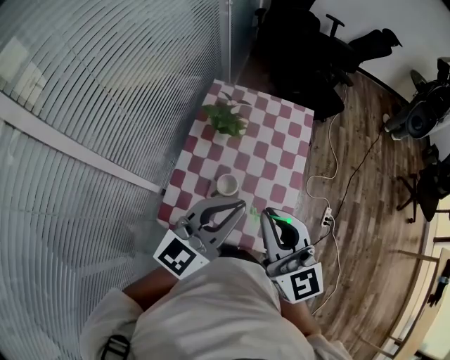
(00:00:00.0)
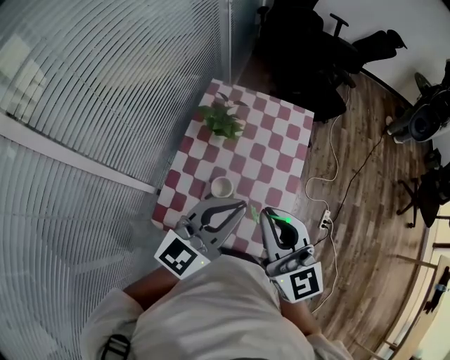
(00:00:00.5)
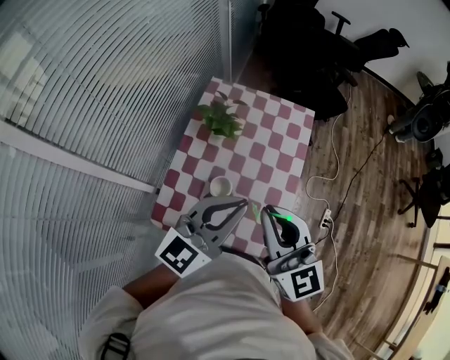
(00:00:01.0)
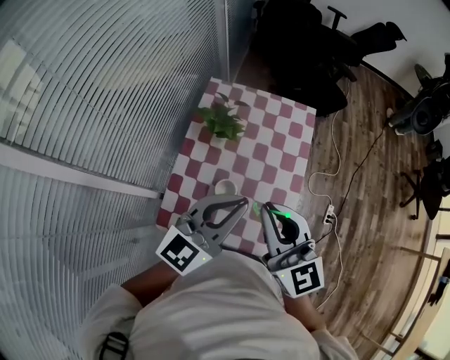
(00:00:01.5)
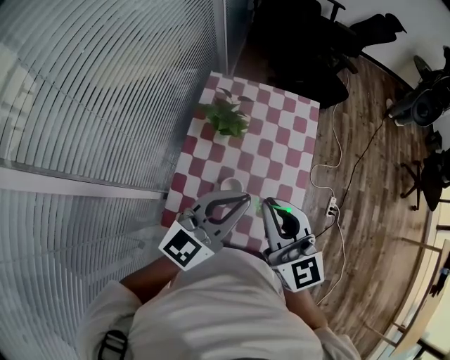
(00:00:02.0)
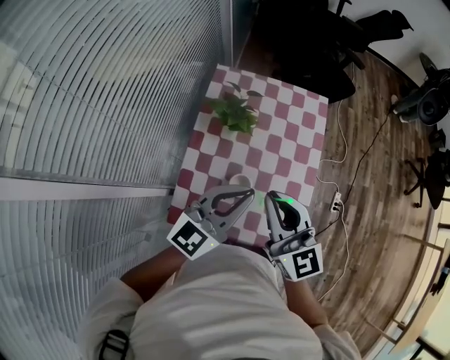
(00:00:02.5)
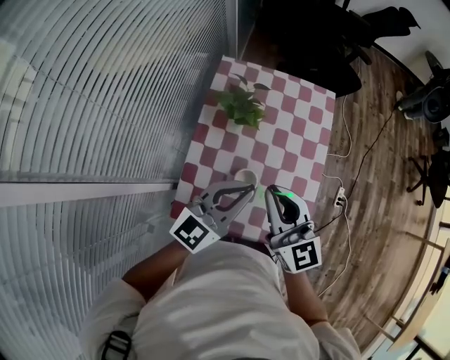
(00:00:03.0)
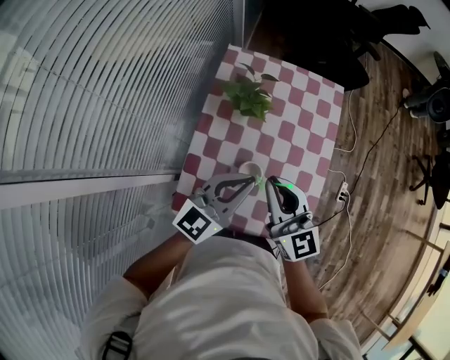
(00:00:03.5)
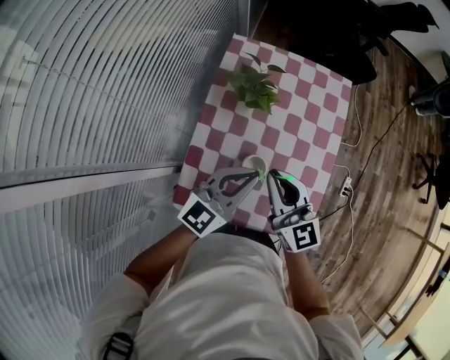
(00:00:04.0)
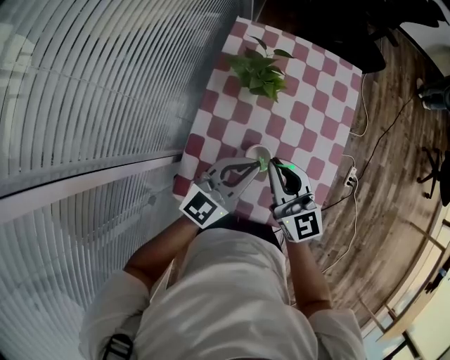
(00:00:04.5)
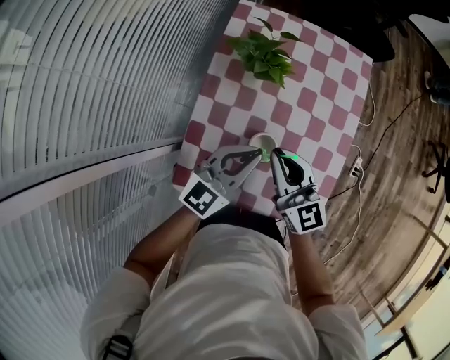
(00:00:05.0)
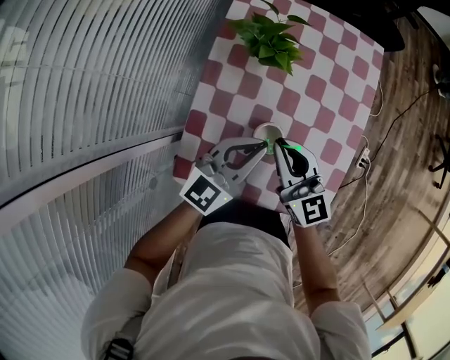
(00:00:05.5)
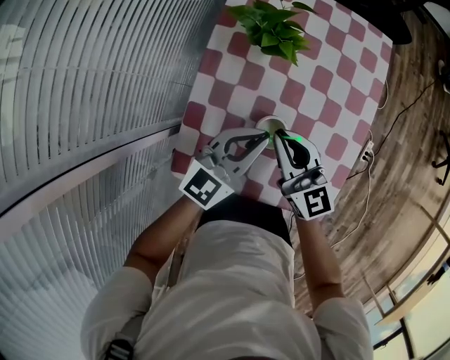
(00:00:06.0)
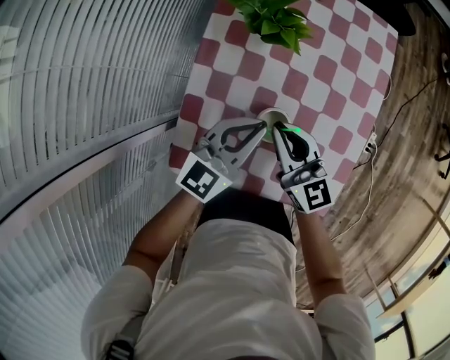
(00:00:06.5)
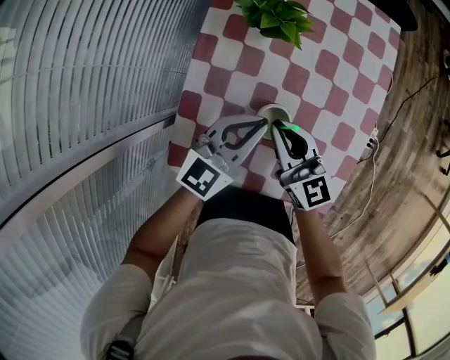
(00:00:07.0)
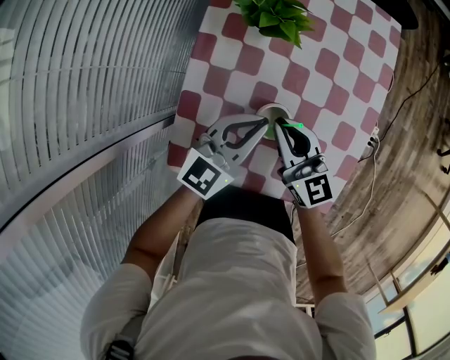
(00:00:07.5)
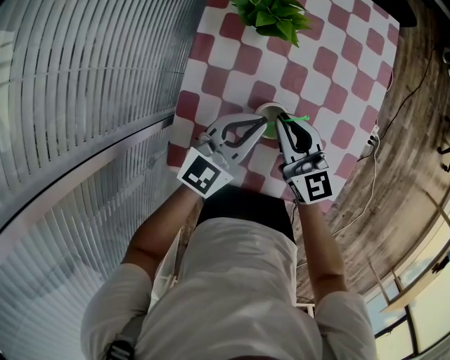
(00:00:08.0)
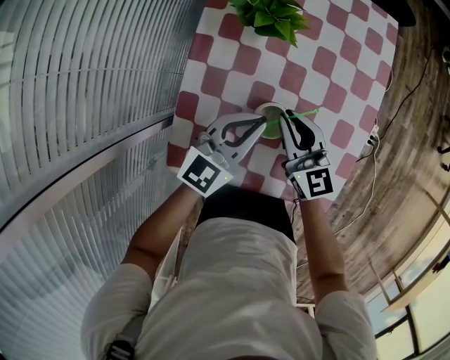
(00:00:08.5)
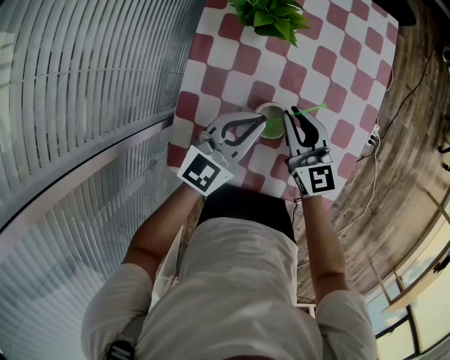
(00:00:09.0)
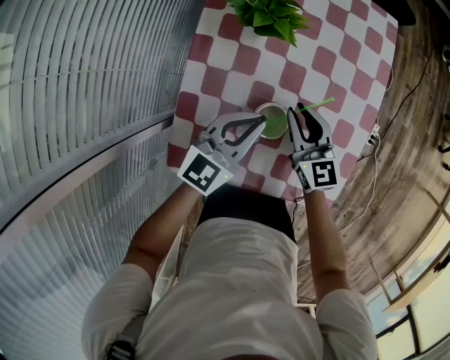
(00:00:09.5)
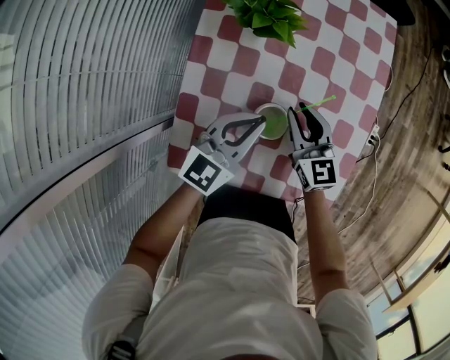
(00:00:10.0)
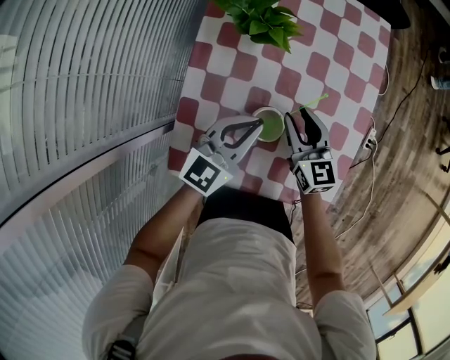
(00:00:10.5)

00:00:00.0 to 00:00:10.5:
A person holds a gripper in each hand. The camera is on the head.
00:00:00.0 to 00:00:02.0: The two grippers go approximately 5 cm forward.
00:00:02.0 to 00:00:04.0: The left gripper travels downward and to the left by about 15 cm. Meanwhile the right gripper heads downward, covering approximately 15 cm.
00:00:04.0 to 00:00:06.5: Both grippers move downward, approximately 15 cm.
00:00:06.5 to 00:00:08.5: The right gripper moves some 5 cm.
00:00:08.5 to 00:00:10.5: The right gripper opens.

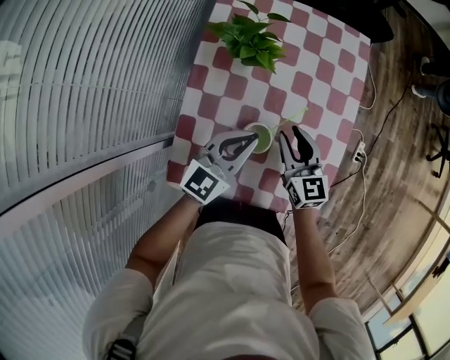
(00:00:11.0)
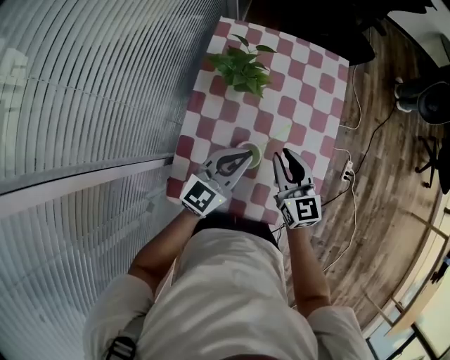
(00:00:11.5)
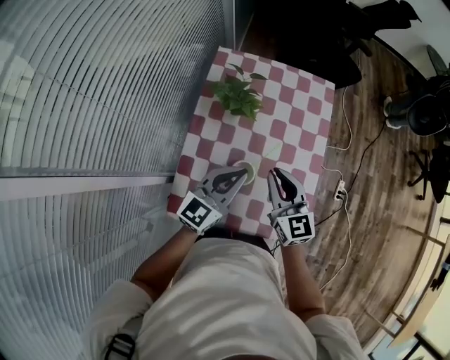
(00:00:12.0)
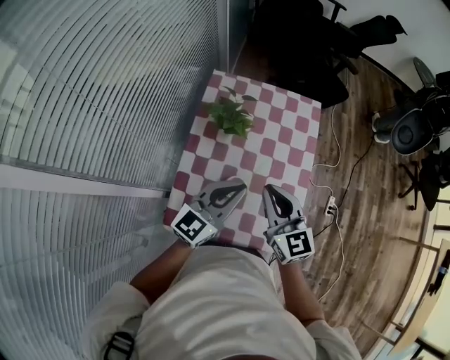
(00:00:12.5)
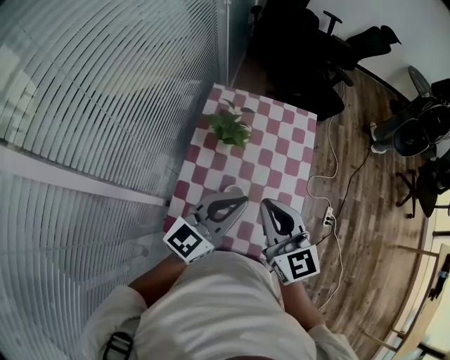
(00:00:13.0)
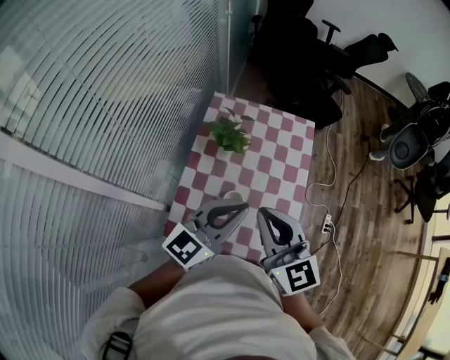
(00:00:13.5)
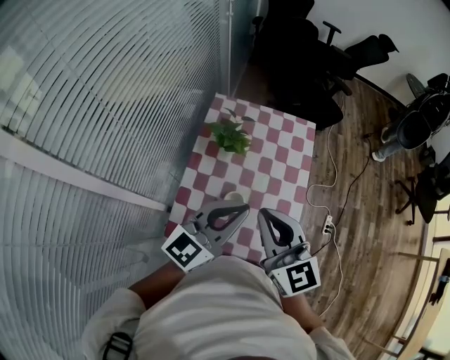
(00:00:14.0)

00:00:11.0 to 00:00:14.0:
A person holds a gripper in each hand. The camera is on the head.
00:00:11.0 to 00:00:12.5: The grippers both shift upward by roughly 20 cm. The right gripper closes up.
00:00:12.5 to 00:00:14.0: The left gripper shifts approximately 10 cm upward; the right gripper travels upward and backward by some 15 cm.

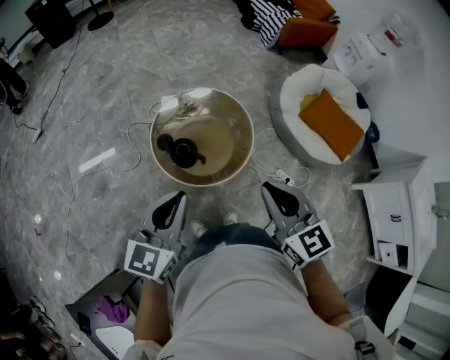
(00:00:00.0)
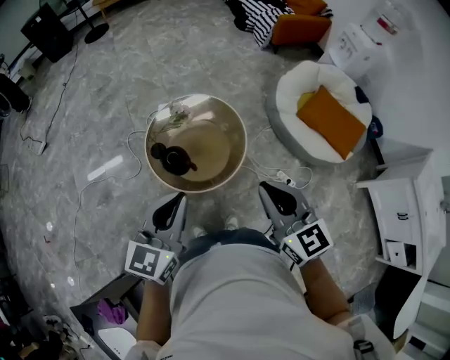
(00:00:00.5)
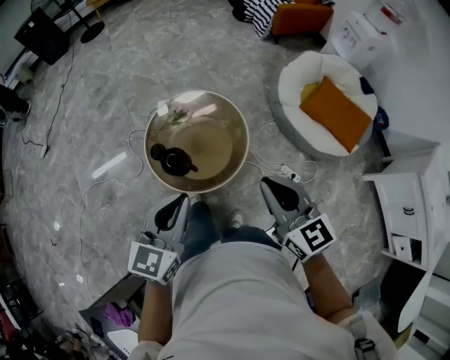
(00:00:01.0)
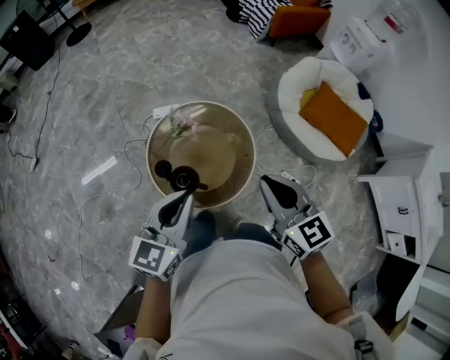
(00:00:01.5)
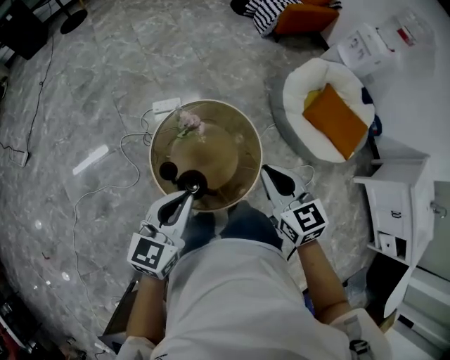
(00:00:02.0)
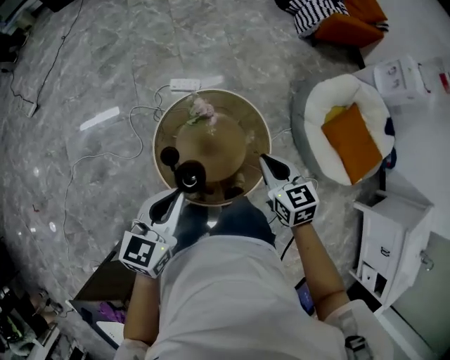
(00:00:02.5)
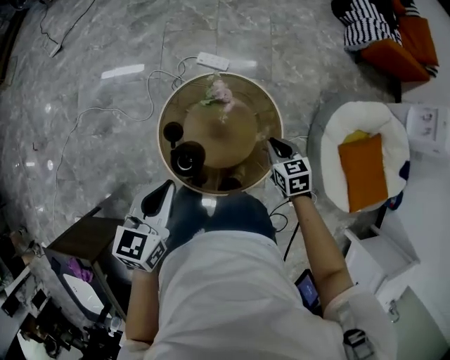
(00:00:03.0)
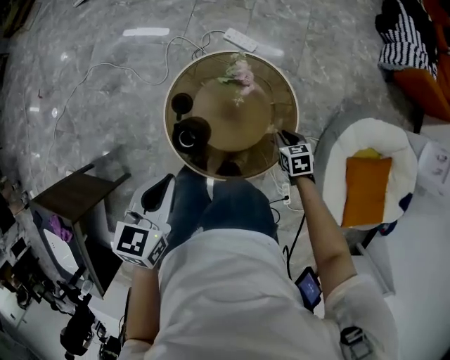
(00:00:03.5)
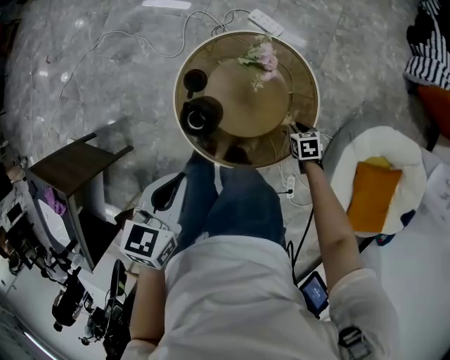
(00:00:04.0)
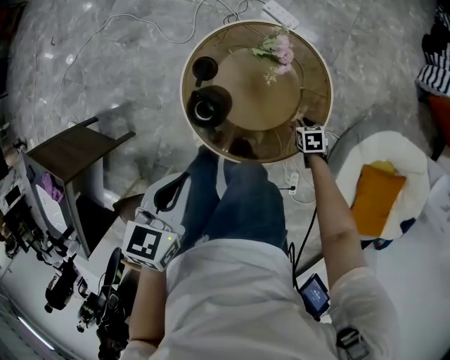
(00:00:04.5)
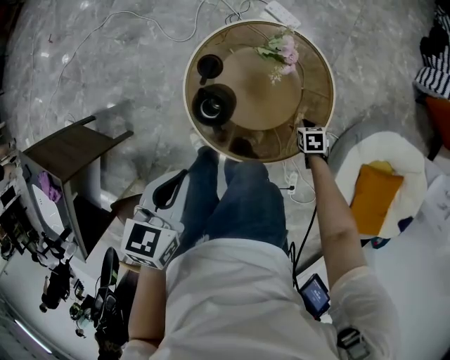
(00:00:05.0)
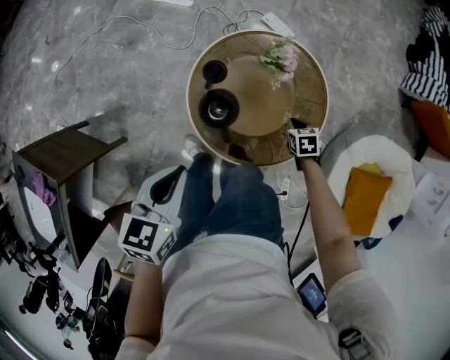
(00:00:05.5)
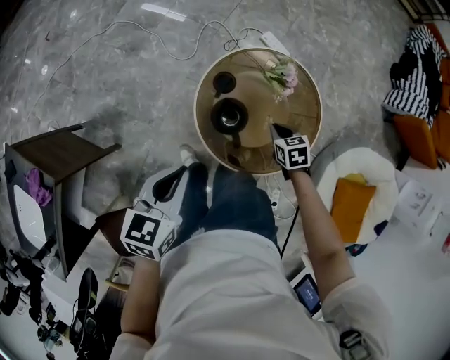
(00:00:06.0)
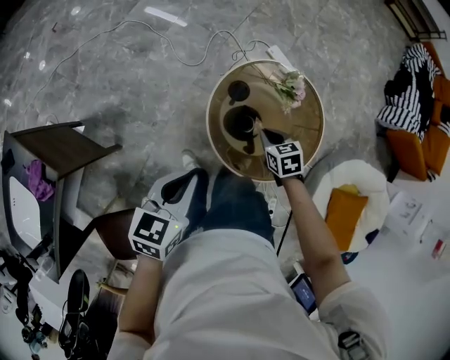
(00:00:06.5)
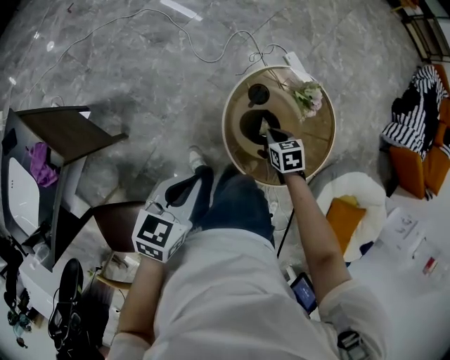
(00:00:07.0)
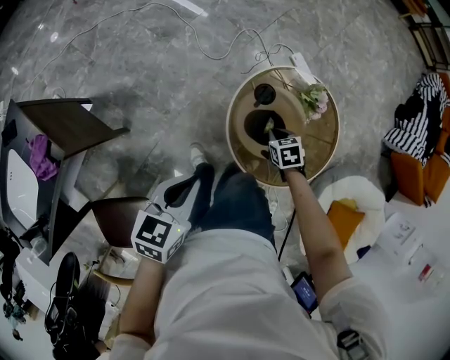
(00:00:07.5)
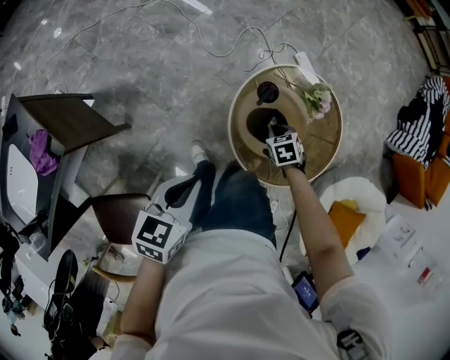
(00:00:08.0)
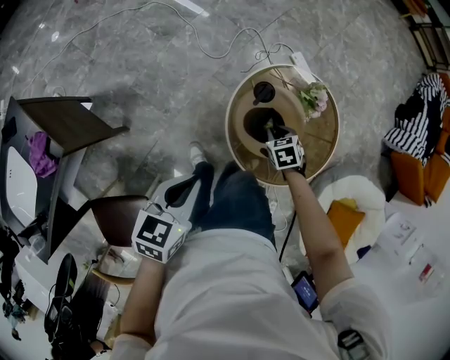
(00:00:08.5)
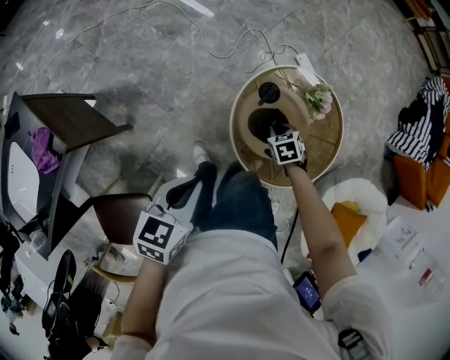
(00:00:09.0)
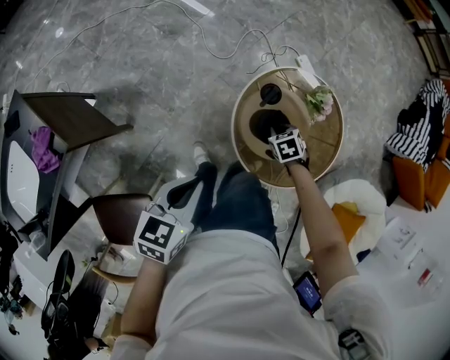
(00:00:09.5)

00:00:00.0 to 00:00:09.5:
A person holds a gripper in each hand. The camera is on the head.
00:00:00.0 to 00:00:02.0: Both grippers travel together forward, roughly 25 cm.
00:00:02.0 to 00:00:04.0: The right gripper heads downward, covering about 50 cm, points its fingers approximately 40 degrees further downward, and opens its fingers; the left gripper is displaced downward by about 15 cm, and changes its angle by roughly 60 degrees.
00:00:04.0 to 00:00:05.5: The right gripper ends up some 10 cm from where it was, and closes its fingers; the left gripper moves some 10 cm.
00:00:05.5 to 00:00:07.5: Both grippers move to the left, some 20 cm.
00:00:07.5 to 00:00:09.5: There are only small adjustments of the grippers.

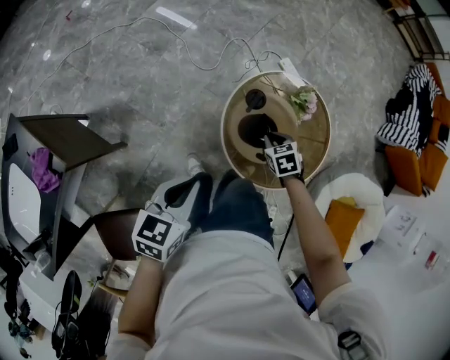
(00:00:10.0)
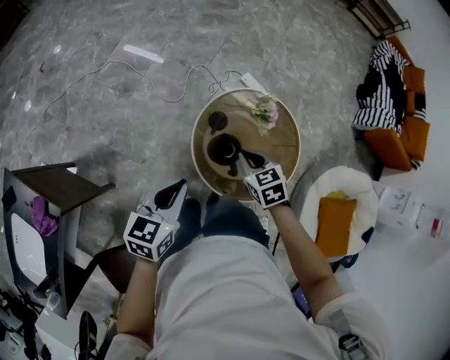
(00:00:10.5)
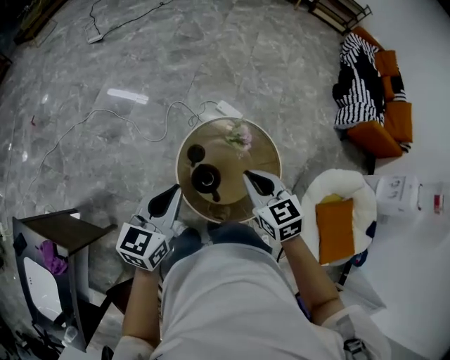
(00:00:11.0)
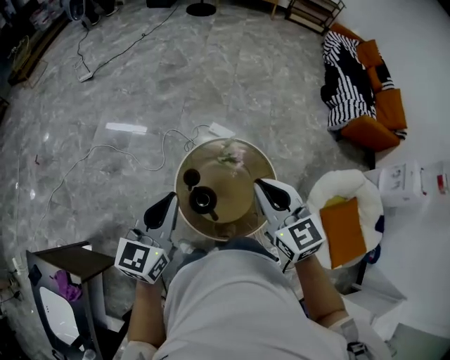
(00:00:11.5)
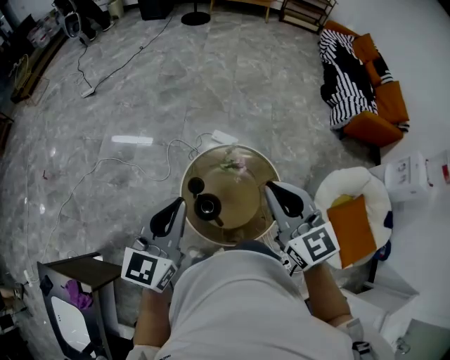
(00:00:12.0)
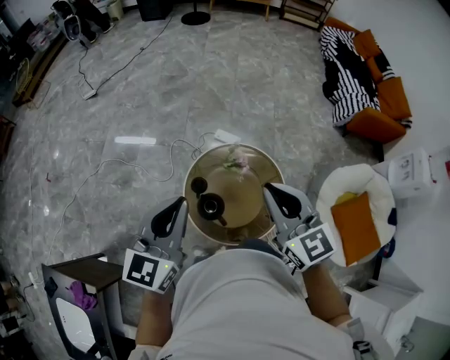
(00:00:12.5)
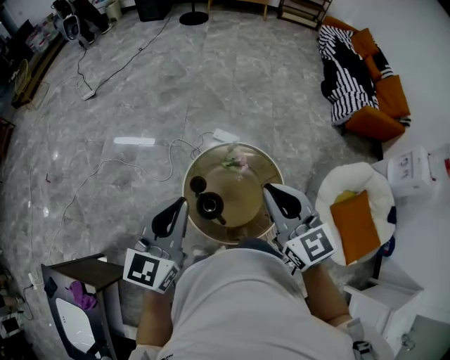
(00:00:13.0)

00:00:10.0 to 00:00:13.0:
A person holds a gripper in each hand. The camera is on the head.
00:00:10.0 to 00:00:11.5: The left gripper is displaced upward, forward and to the right by some 30 cm, and turns by about 30 degrees, while the right gripper moves upward, approximately 40 cm, and tips its fingers upward by some 50 degrees.
00:00:11.5 to 00:00:13.0: The left gripper is displaced upward by roughly 5 cm. Meanwhile the right gripper shifts by some 5 cm.
